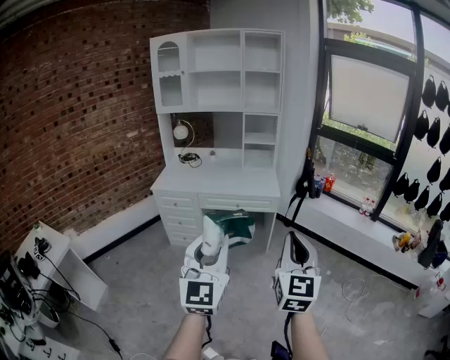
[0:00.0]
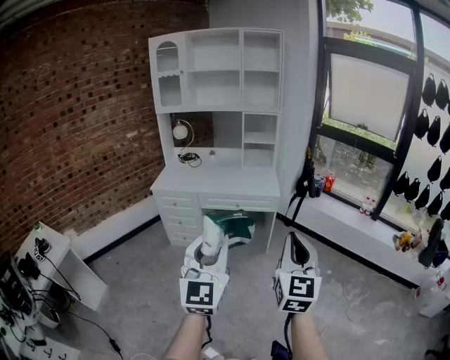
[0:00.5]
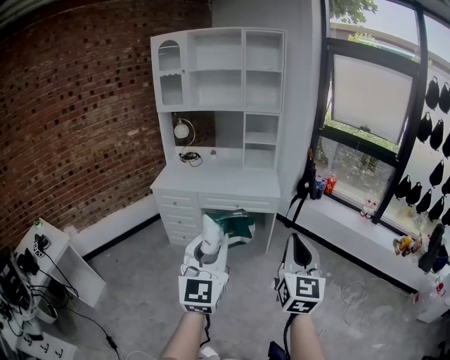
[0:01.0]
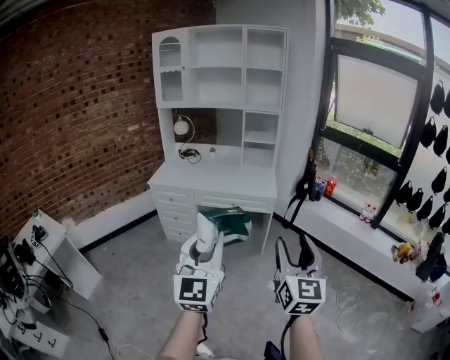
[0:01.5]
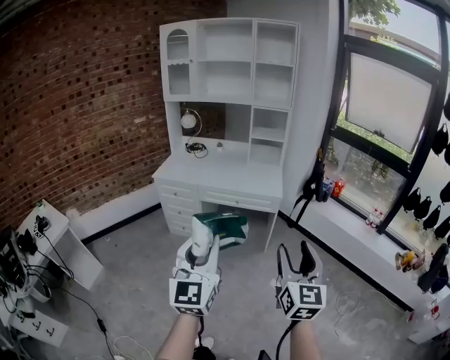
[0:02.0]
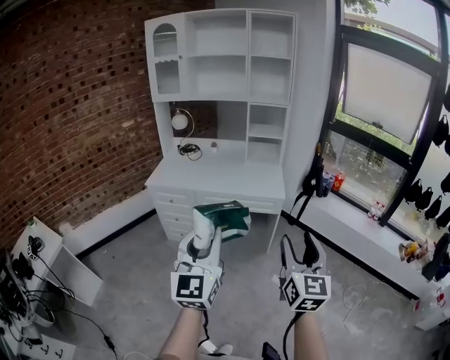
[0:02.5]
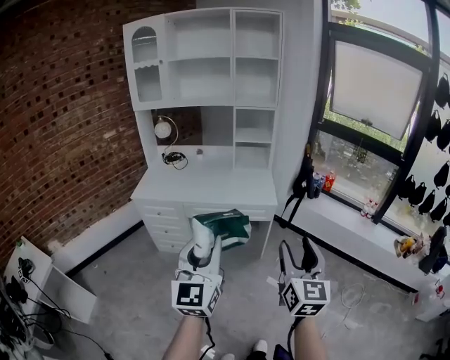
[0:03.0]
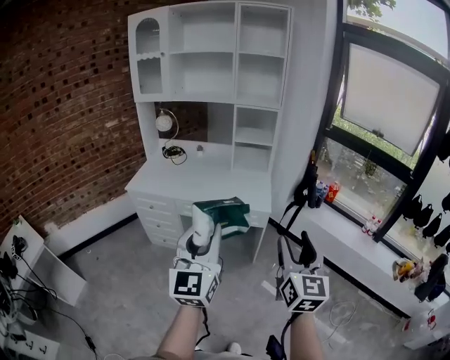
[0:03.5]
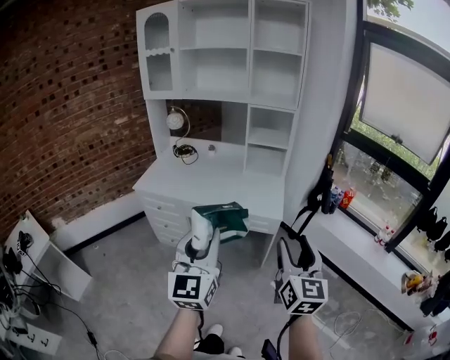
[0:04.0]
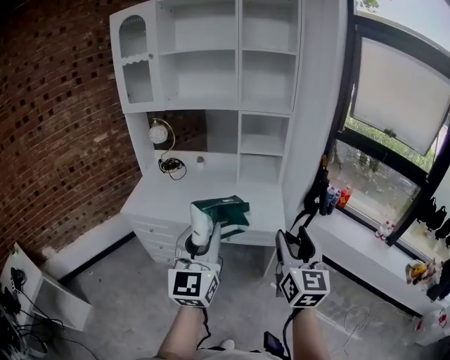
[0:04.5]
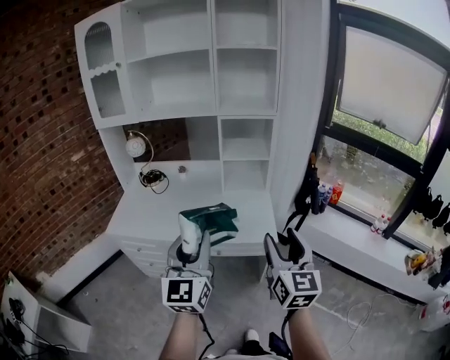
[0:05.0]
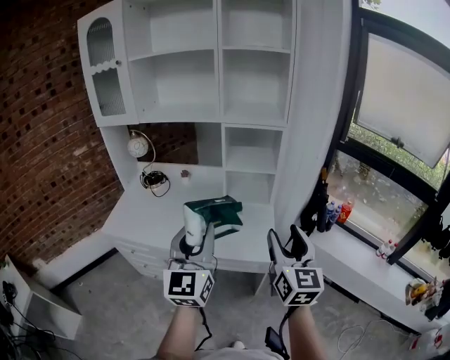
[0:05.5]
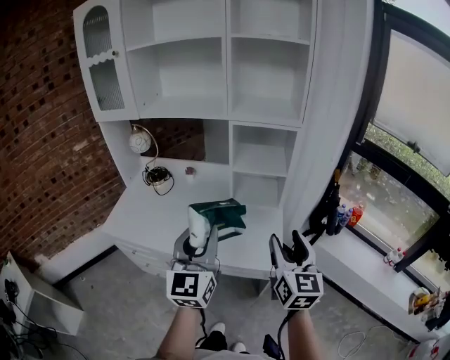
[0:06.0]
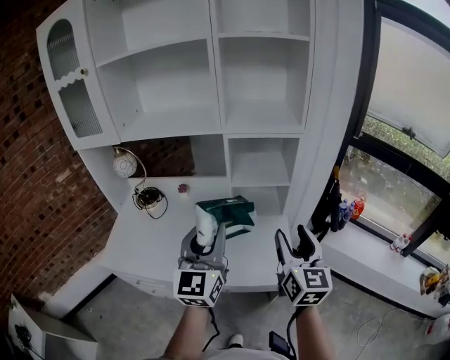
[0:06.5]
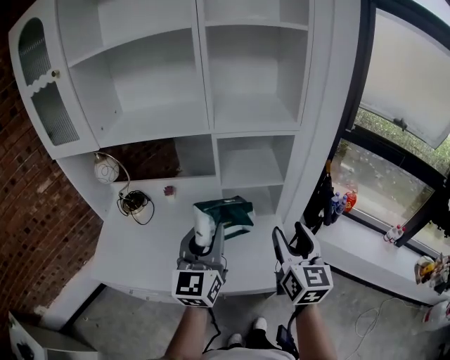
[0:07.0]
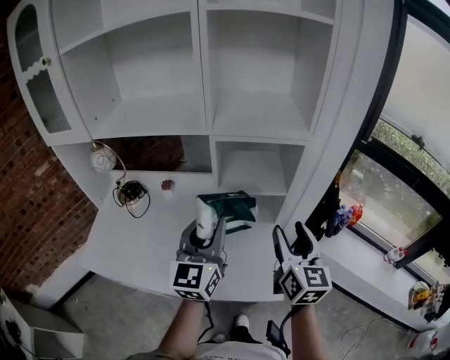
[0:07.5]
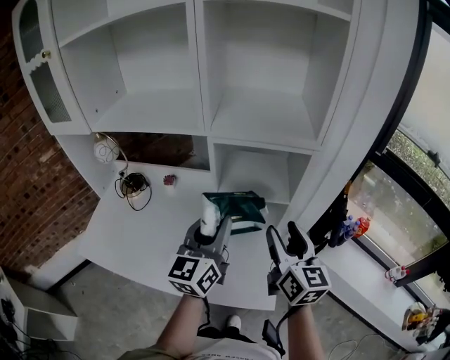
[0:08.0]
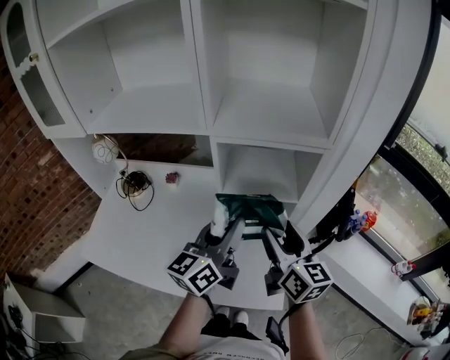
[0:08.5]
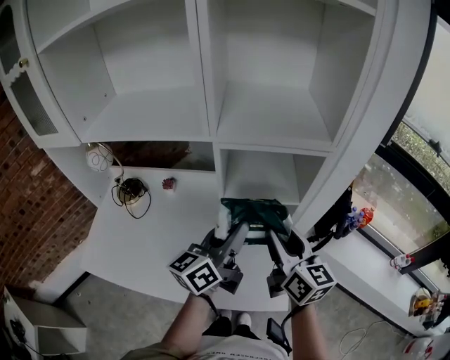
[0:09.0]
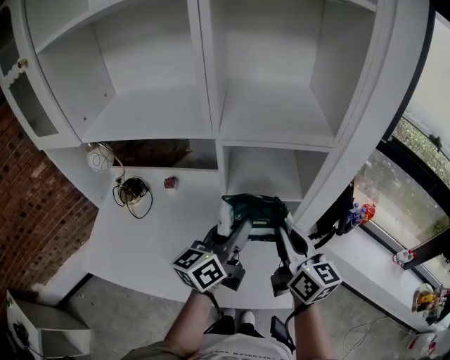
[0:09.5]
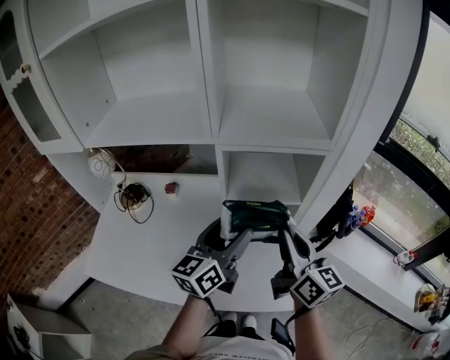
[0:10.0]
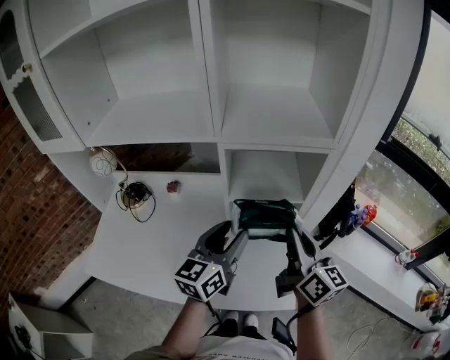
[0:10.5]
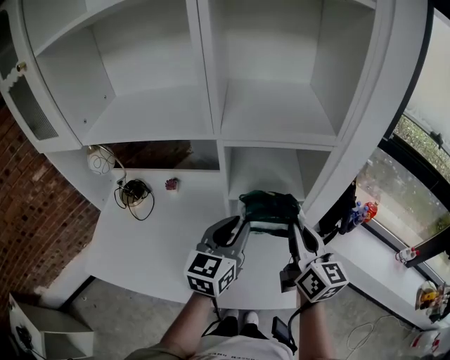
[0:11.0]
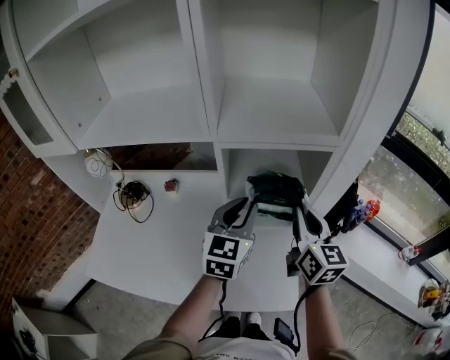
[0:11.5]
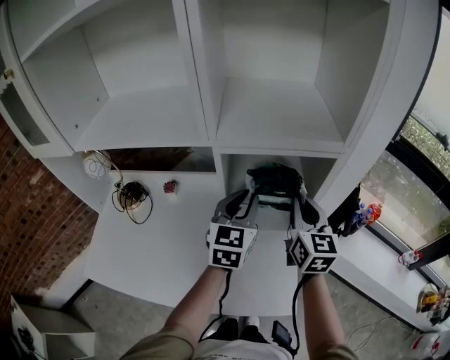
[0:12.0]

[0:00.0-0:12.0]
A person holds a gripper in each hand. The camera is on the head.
0:00.0 to 0:02.0: The left gripper moves roughly 5 cm, while the right gripper goes approximately 10 cm to the right and forward, and opens.
0:02.0 to 0:04.0: Both grippers travel together forward, approximately 30 cm.
0:04.0 to 0:06.0: Both grippers move forward, approximately 40 cm.
0:06.0 to 0:08.0: Both grippers move forward, roughly 25 cm. The left gripper rotates about 20 degrees.
0:08.0 to 0:10.0: The right gripper closes up, while the left gripper rotates some 20 degrees, and opens up.
0:10.0 to 0:12.0: Both grippers move forward, roughly 10 cm. The right gripper changes its angle by approximately 30 degrees; the left gripper swivels approximately 30 degrees, and closes up.

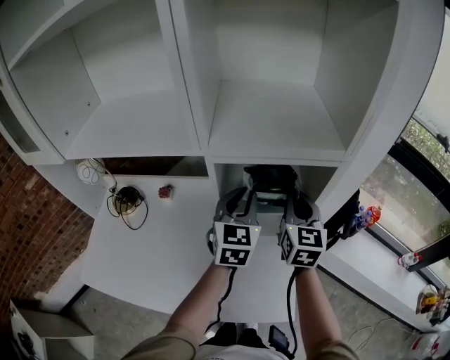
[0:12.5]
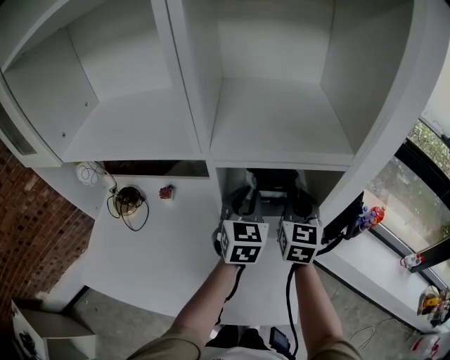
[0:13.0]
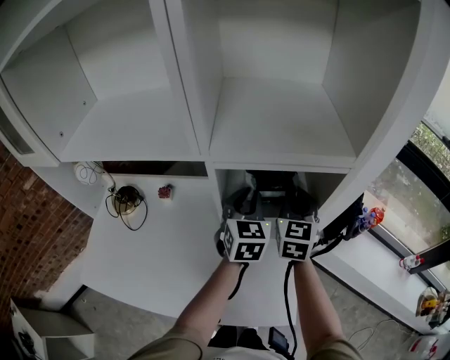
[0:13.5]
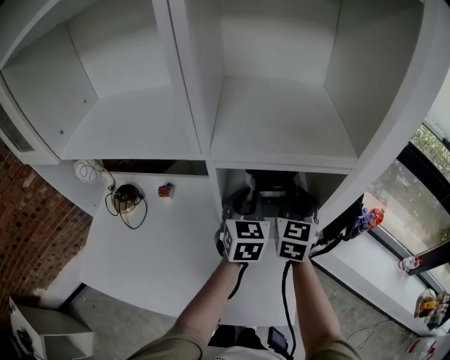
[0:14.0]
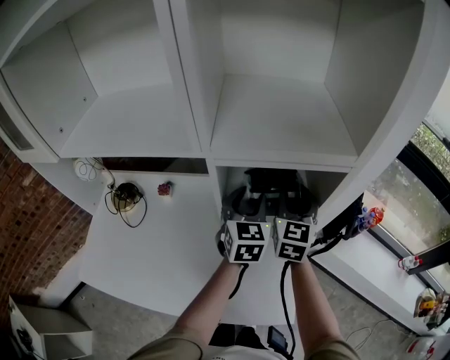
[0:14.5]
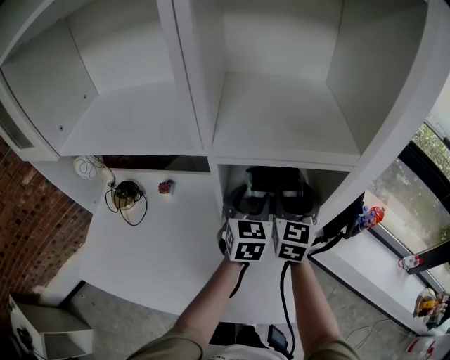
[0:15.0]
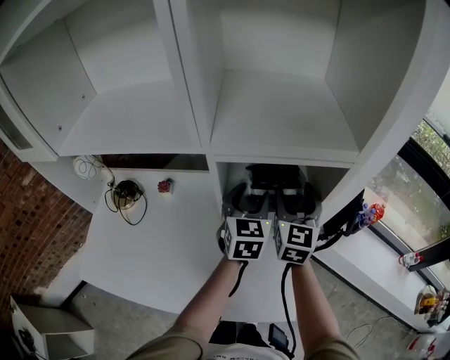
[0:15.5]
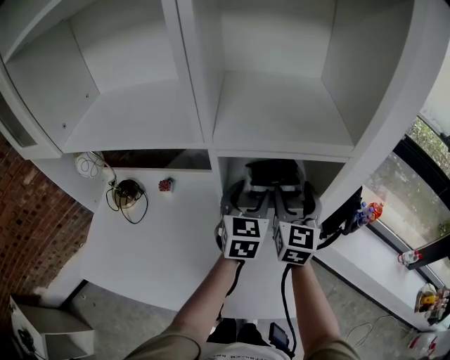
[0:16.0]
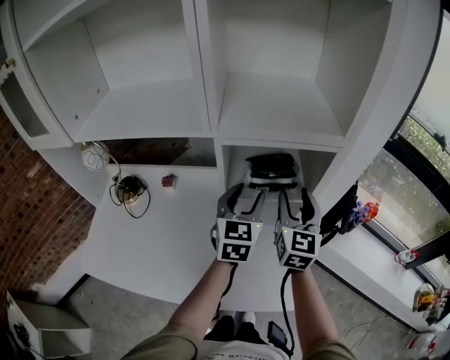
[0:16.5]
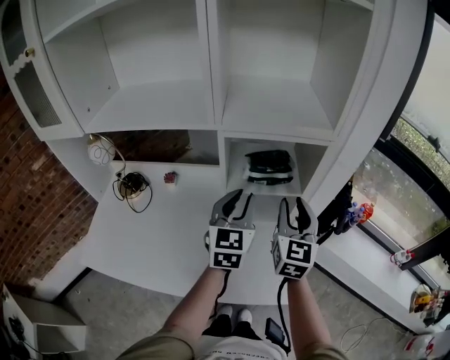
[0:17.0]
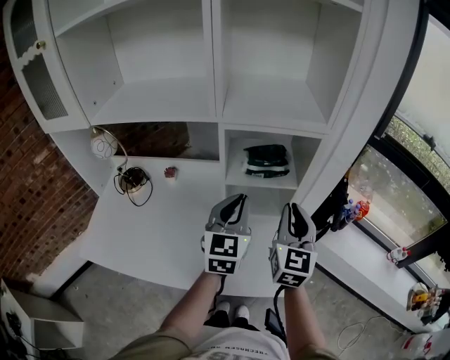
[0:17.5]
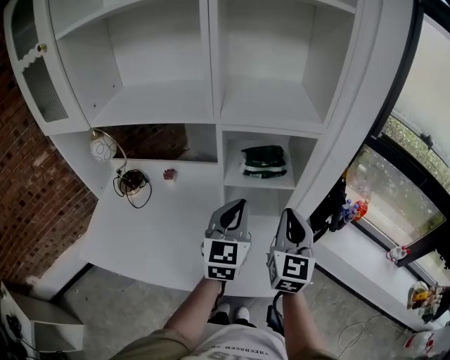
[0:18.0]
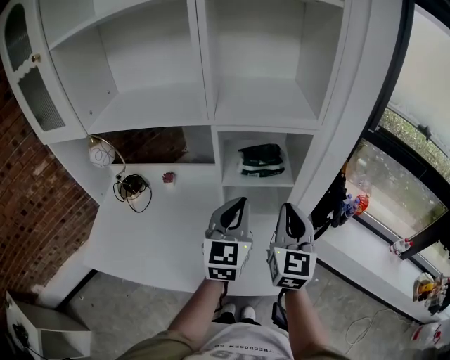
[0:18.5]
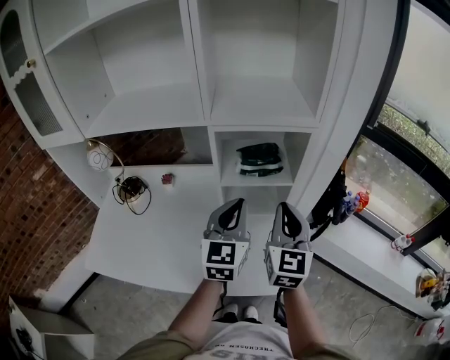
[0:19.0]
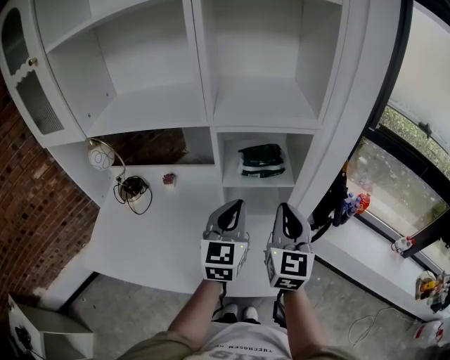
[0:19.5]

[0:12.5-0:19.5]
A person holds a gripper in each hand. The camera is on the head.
0:12.5 to 0:14.5: The right gripper opens, while the left gripper changes place by approximately 5 cm.
0:14.5 to 0:16.0: The right gripper opens.
0:16.0 to 0:17.5: Both grippers move backward, roughly 15 cm. The right gripper closes its fingers; the left gripper closes.
0:17.5 to 0:19.5: There are only small adjustments of the grippers.

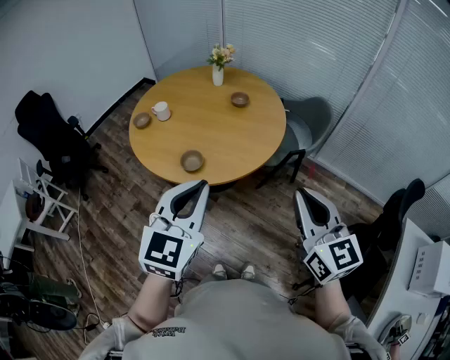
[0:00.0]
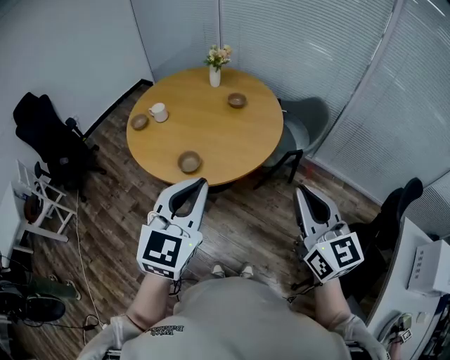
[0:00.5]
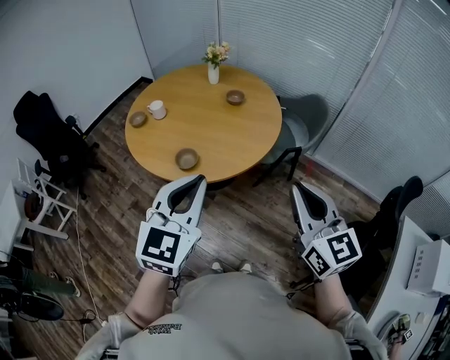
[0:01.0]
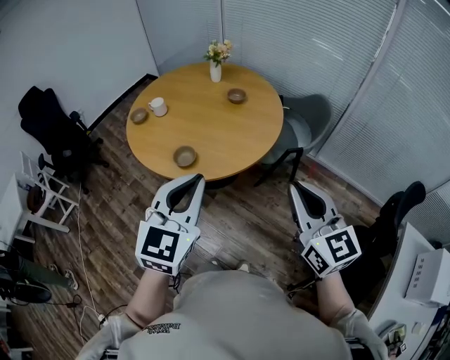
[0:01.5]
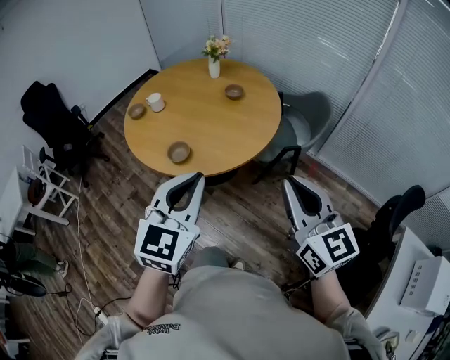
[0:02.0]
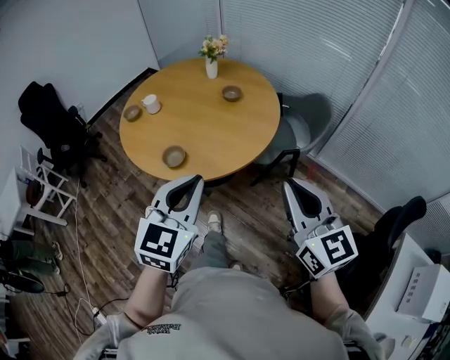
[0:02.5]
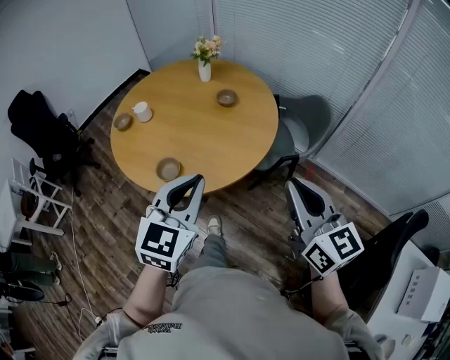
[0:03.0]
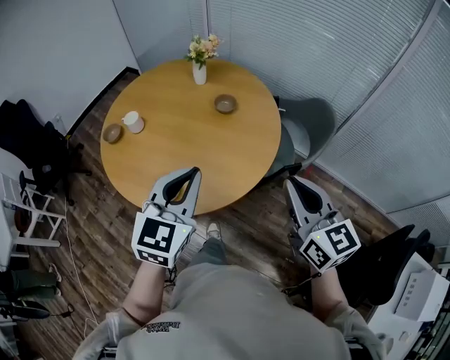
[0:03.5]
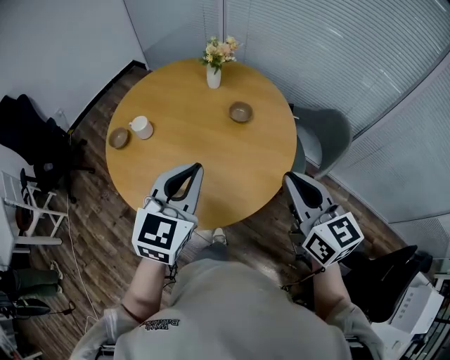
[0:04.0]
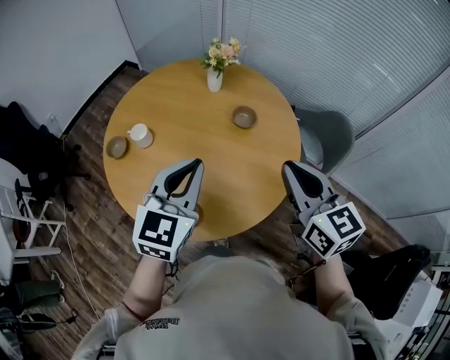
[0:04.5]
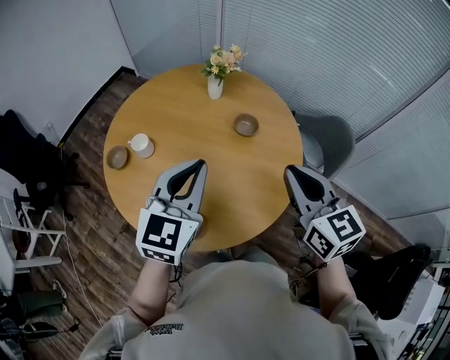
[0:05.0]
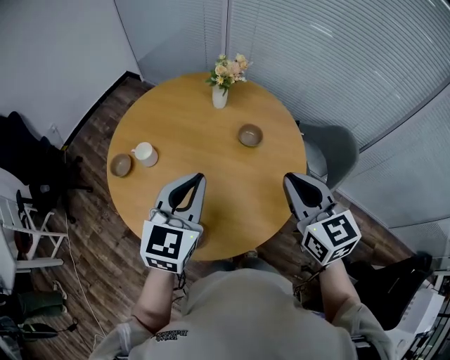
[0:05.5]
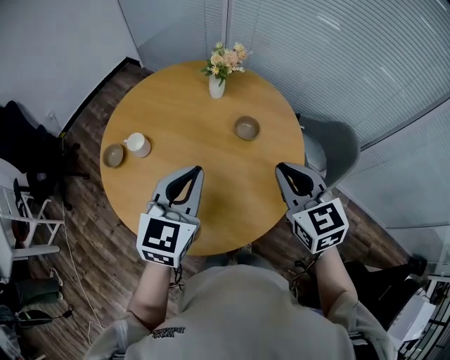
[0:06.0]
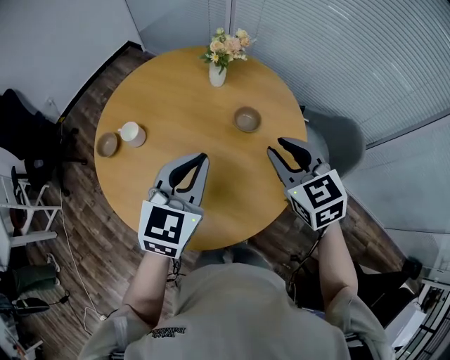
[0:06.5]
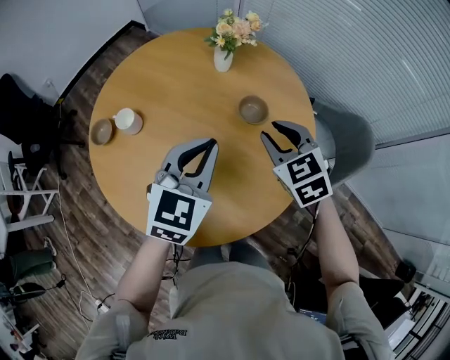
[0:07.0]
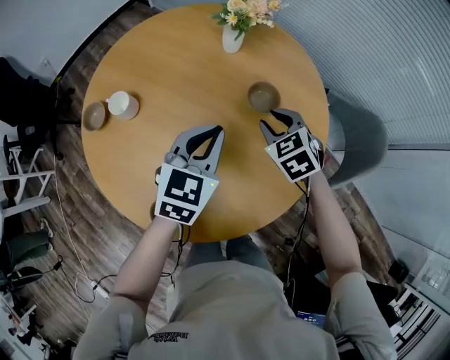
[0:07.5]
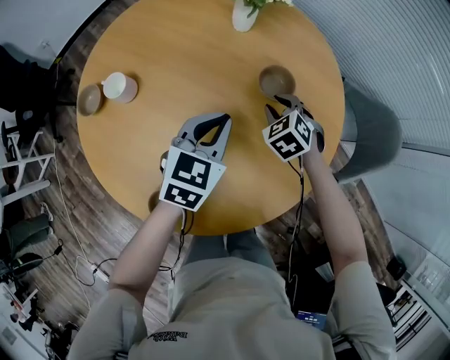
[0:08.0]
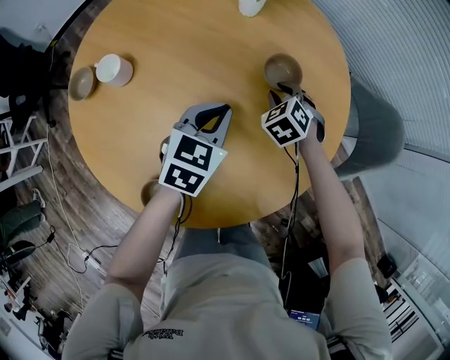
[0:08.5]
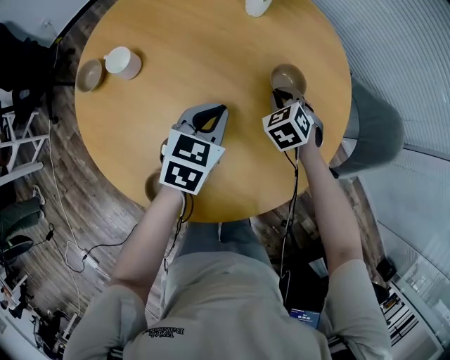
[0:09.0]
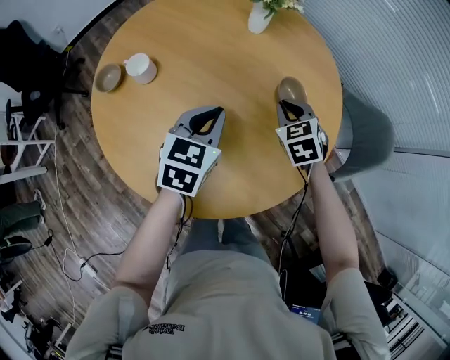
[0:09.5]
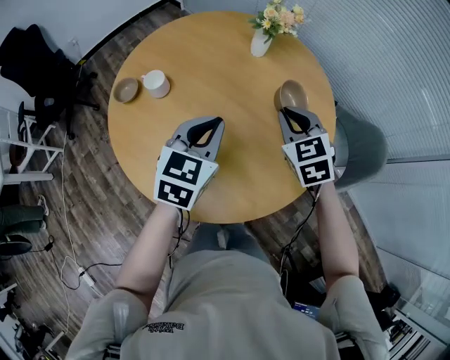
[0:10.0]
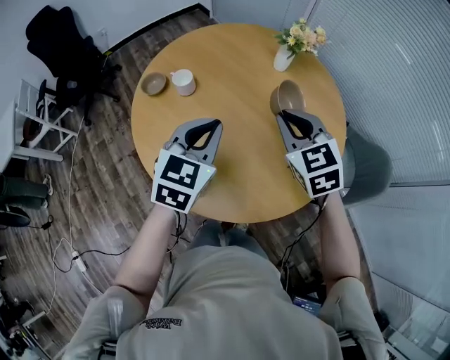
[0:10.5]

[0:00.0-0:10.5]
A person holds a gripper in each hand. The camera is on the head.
0:00.0 to 0:02.0: The two grippers go roughly 5 cm to the right.
0:02.0 to 0:04.0: Both grippers travel together forward, about 30 cm.
0:04.0 to 0:06.5: The grippers both shift forward by about 20 cm. The right gripper turns by about 30 degrees.
0:06.5 to 0:08.5: The left gripper moves downward, some 25 cm, and changes its angle by some 20 degrees; the right gripper goes approximately 35 cm downward and forward, and changes its angle by approximately 40 degrees.
0:08.5 to 0:10.5: The left gripper moves upward, backward and to the left, some 25 cm, and changes its angle by approximately 20 degrees. Meanwhile the right gripper is displaced upward and backward by about 30 cm, and changes its angle by about 30 degrees.
